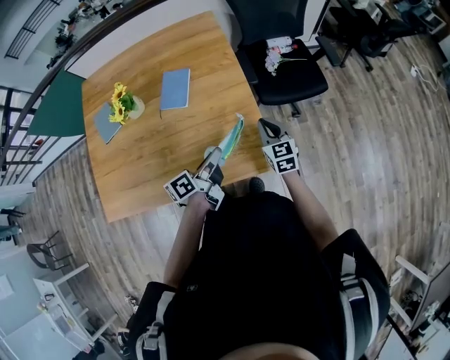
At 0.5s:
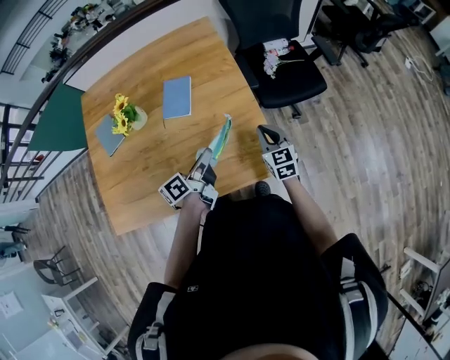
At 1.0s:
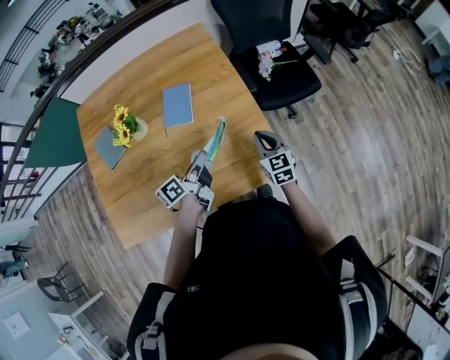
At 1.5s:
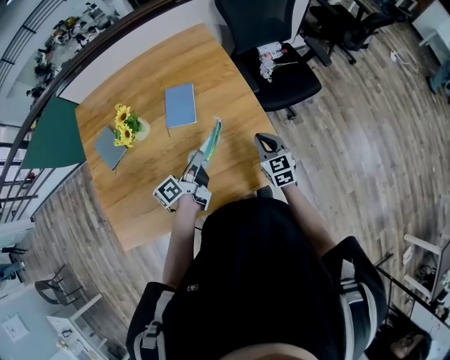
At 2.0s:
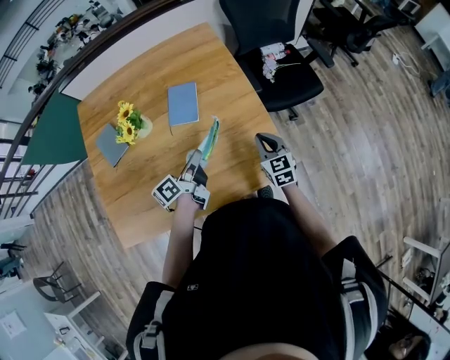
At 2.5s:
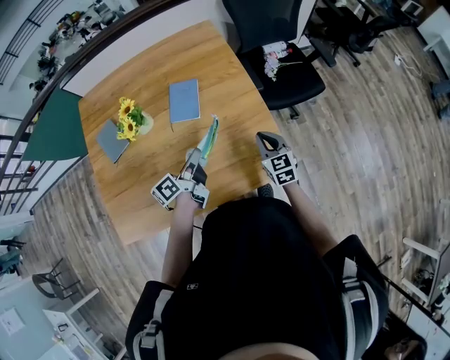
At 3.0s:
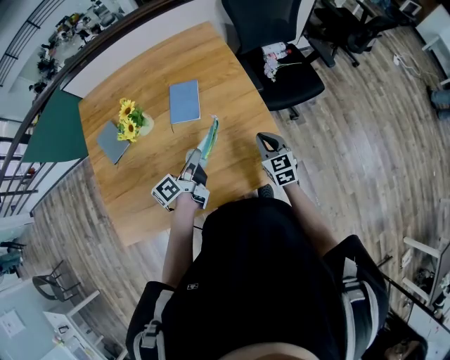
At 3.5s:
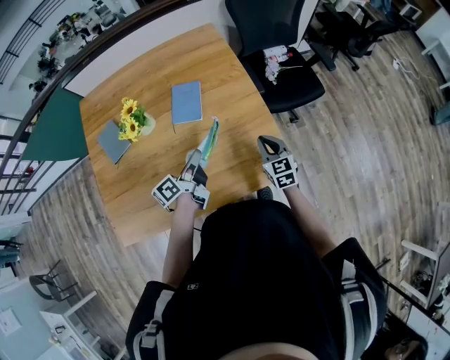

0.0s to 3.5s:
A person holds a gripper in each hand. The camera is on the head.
0.0s to 2.0s: The left gripper is displaced to the left by about 15 cm, while the right gripper heads to the left, covering approximately 10 cm.
2.0s to 3.5s: The grippers move only a little.

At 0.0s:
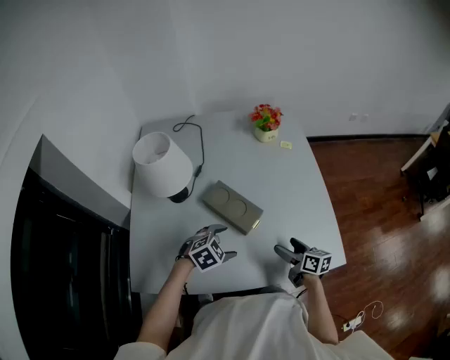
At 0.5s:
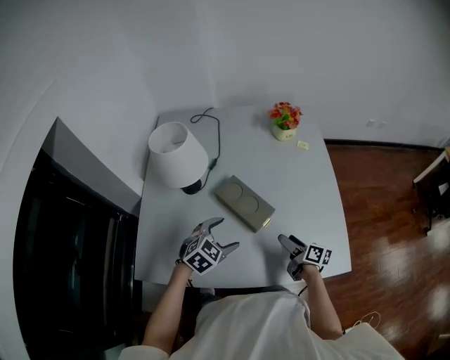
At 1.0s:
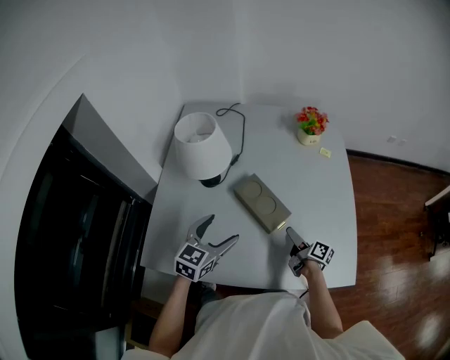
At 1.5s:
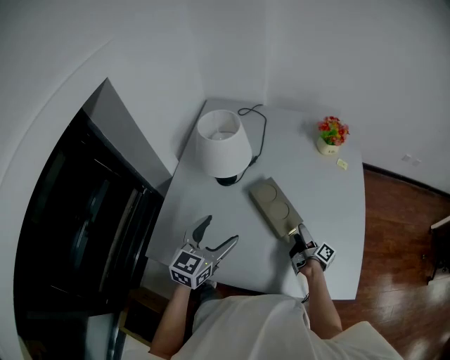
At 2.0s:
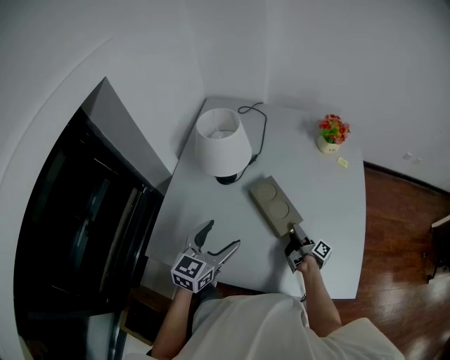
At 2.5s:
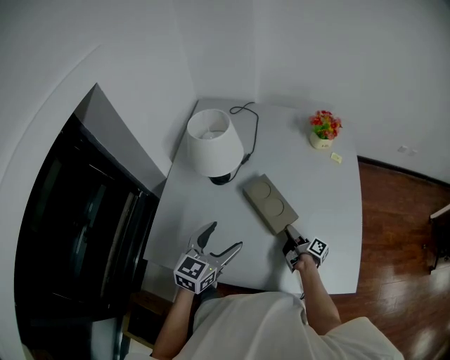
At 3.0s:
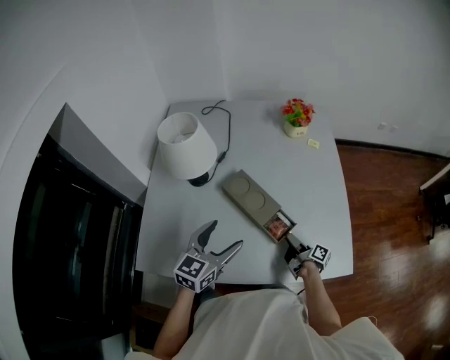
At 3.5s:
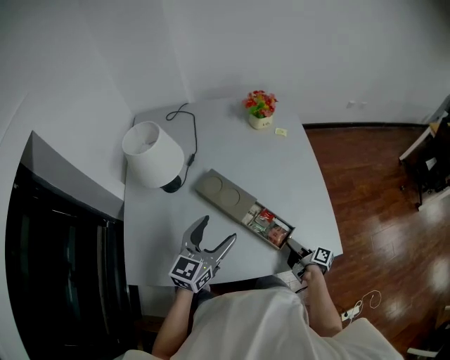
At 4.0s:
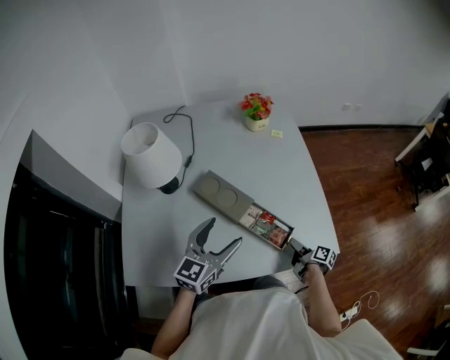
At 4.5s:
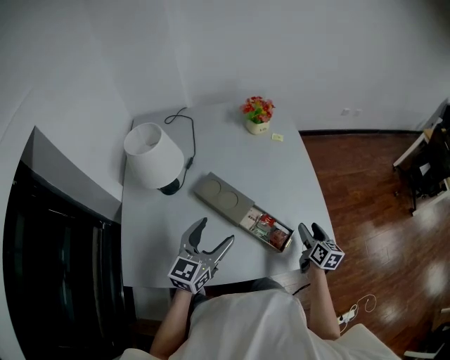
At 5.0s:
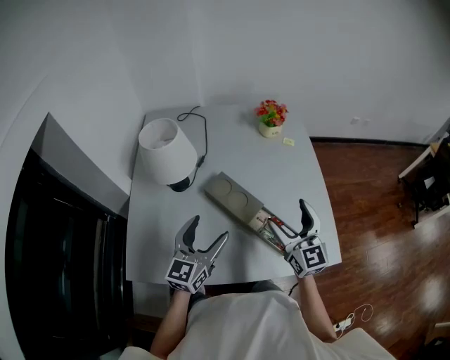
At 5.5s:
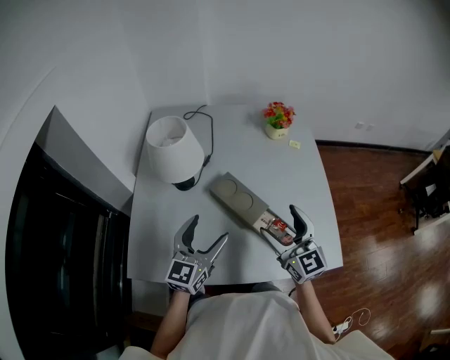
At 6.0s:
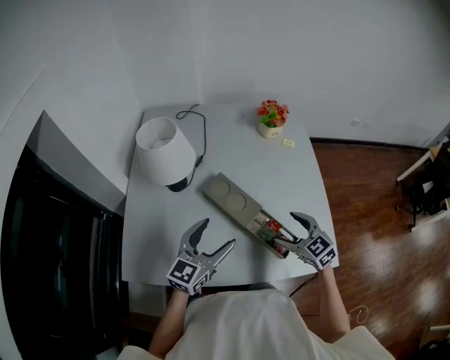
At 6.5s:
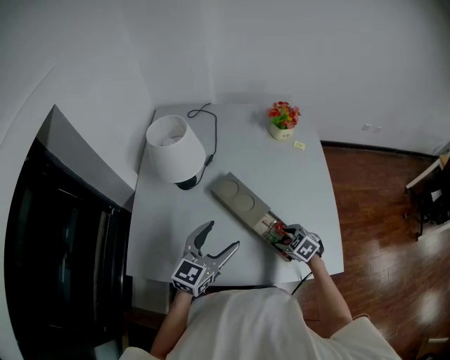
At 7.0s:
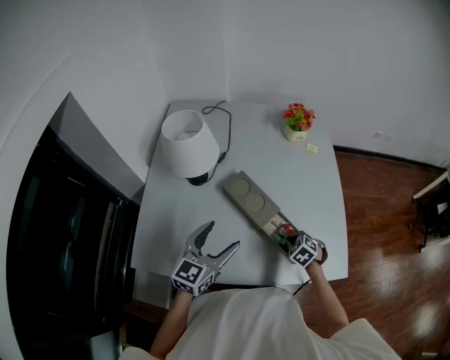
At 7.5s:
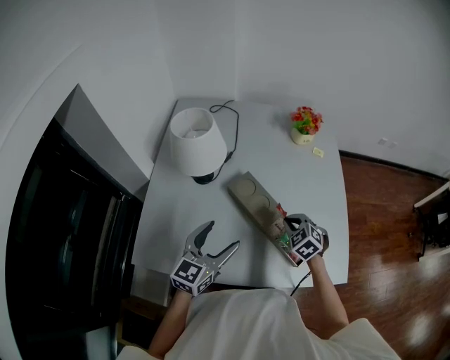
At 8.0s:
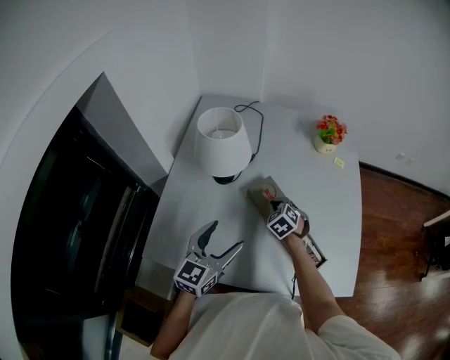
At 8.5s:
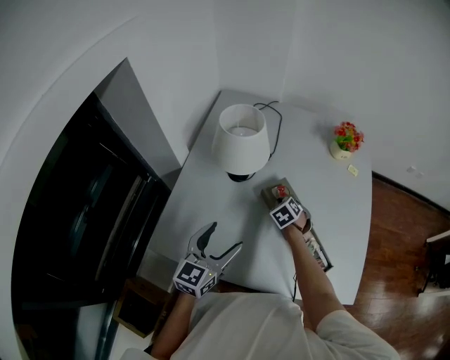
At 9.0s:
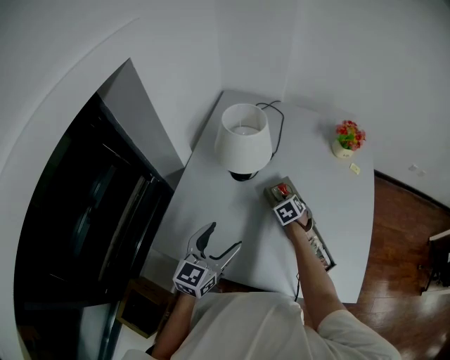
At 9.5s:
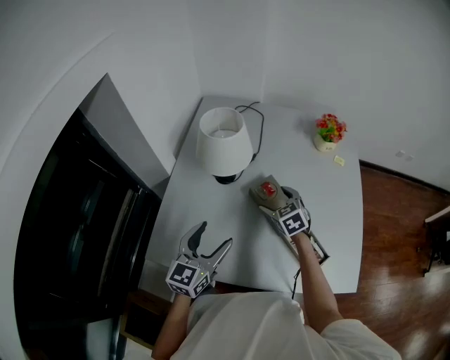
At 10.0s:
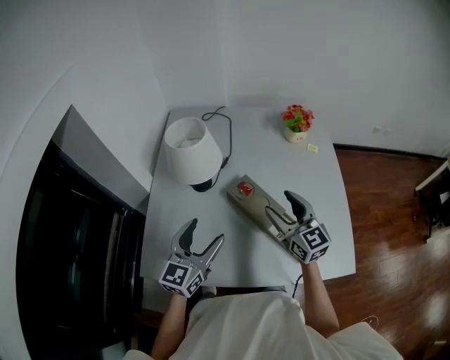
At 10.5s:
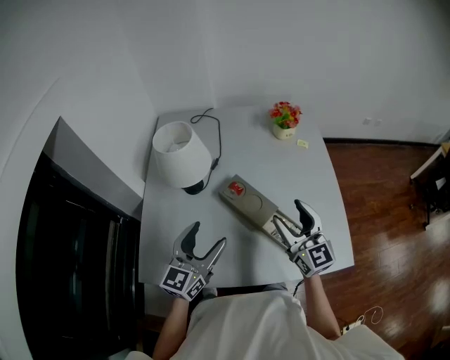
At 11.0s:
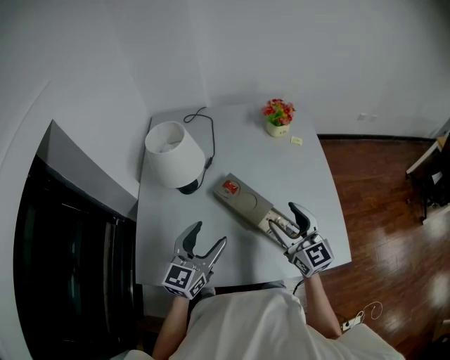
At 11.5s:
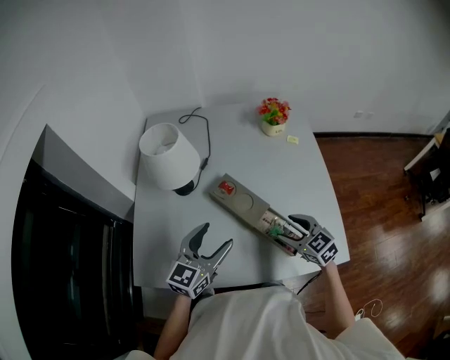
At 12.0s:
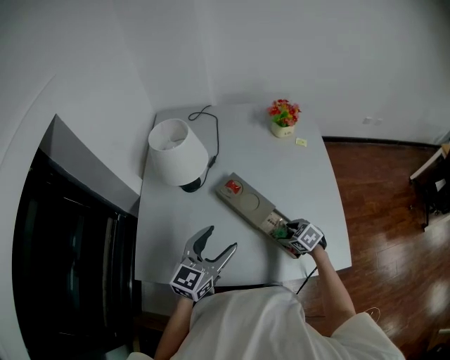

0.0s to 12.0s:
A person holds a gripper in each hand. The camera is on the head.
0.0s to 2.0s: The left gripper moves upward and to the left, some 15 cm, and points its fingers roughly 40 degrees further upward. The right gripper heads forward, to the left and downward, covering about 15 cm, twists approximately 50 degrees clockwise, seen from behind, and closes up.
2.0s to 4.0s: The left gripper is displaced to the right by approximately 15 cm, and rotates about 20 degrees; the right gripper heads to the right and backward, covering roughly 25 cm, and swivels approximately 20 degrees.
4.0s to 6.0s: The left gripper travels to the left by about 5 cm. Meanwhile the right gripper moves upward and to the left, roughly 25 cm, twists approximately 90 degrees counterclockwise, seen from behind, and opens up.
6.0s to 8.0s: The left gripper travels to the left by roughly 10 cm. The right gripper goes roughly 25 cm to the left, forward and downward, changes its angle by approximately 30 degrees, and closes up.
8.0s to 10.0s: The right gripper goes roughly 20 cm upward and backward, tilts its fingers approximately 50 degrees upward, and opens up.
10.0s to 12.0s: The right gripper moves downward, some 25 cm, and tilts its fingers some 60 degrees downward. Meanwhile the left gripper is displaced to the right by about 10 cm.

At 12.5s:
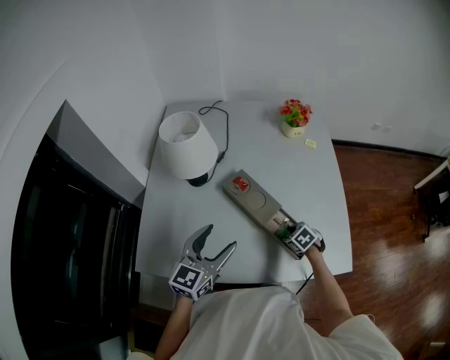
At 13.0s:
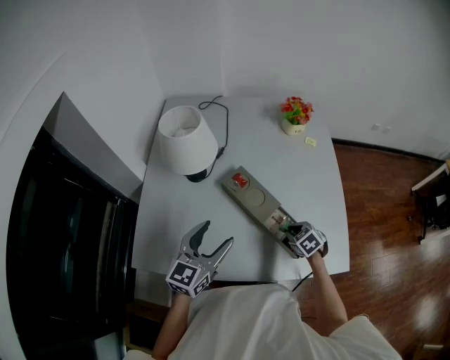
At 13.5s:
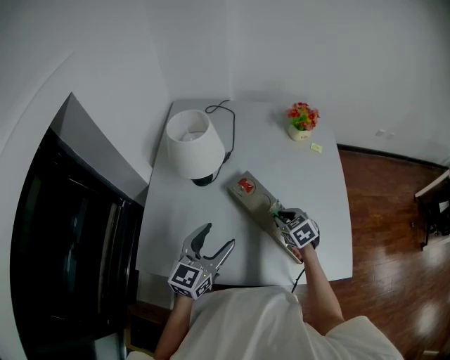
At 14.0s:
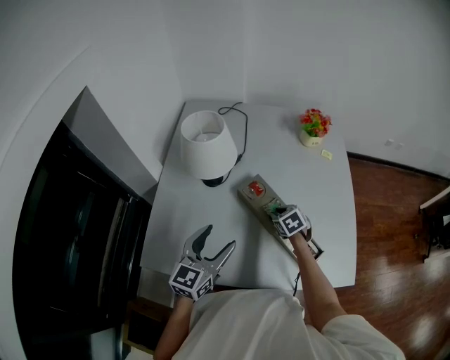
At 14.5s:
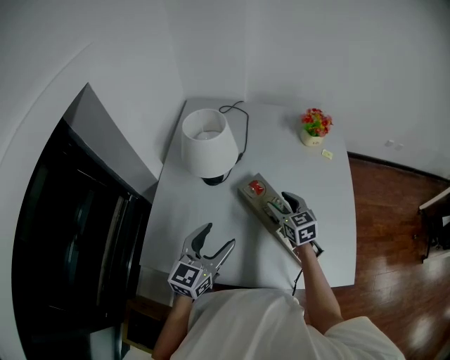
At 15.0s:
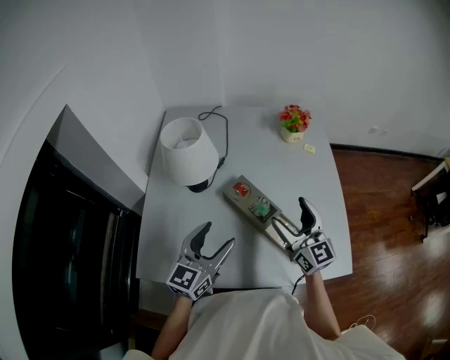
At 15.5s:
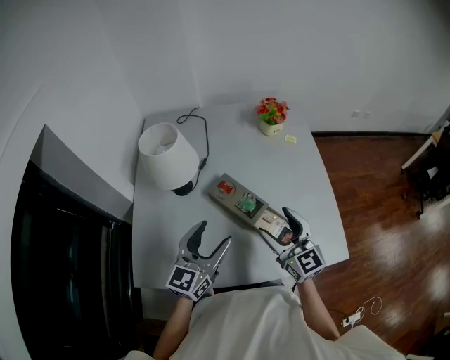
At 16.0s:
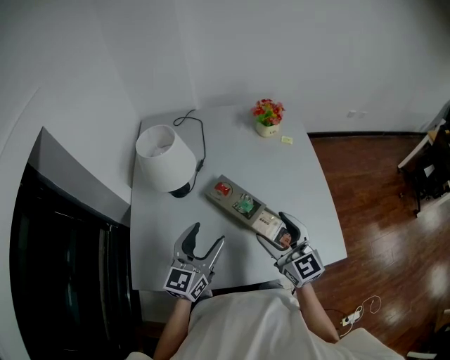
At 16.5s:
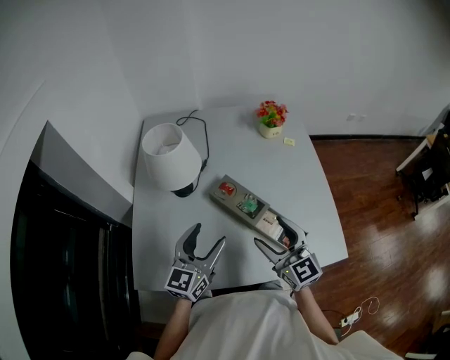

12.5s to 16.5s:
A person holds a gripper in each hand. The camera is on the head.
12.5s to 14.5s: The left gripper changes place by about 5 cm. Meanwhile the right gripper swings up and down, about 20 cm each way, with 2 reversals, and points its fingers some 40 degrees further upward.
14.5s to 16.5s: The right gripper moves backward and upward, approximately 20 cm, and changes its angle by some 20 degrees.

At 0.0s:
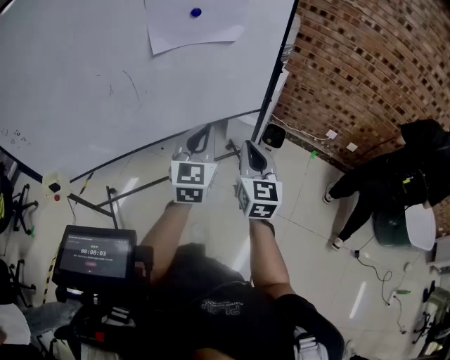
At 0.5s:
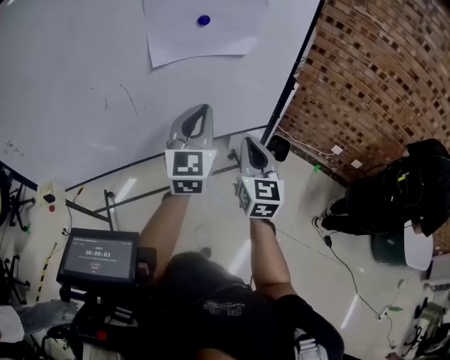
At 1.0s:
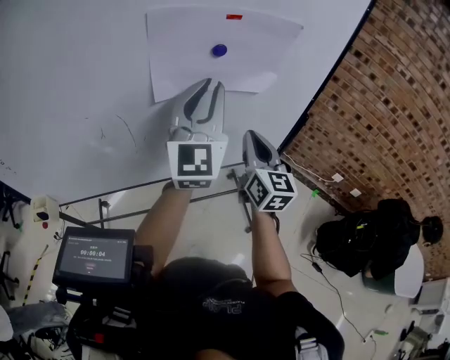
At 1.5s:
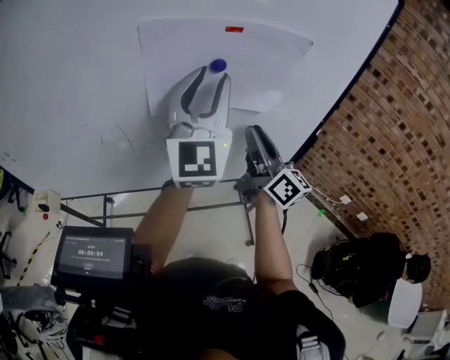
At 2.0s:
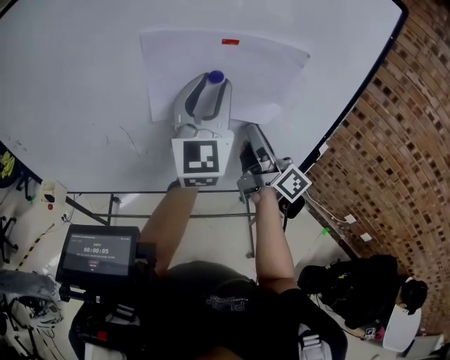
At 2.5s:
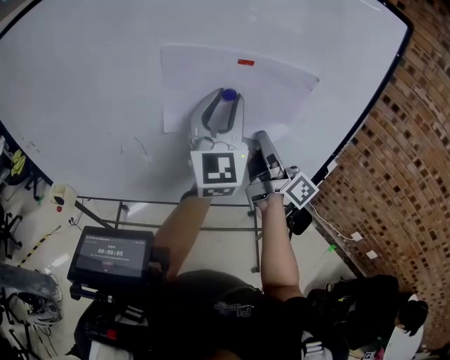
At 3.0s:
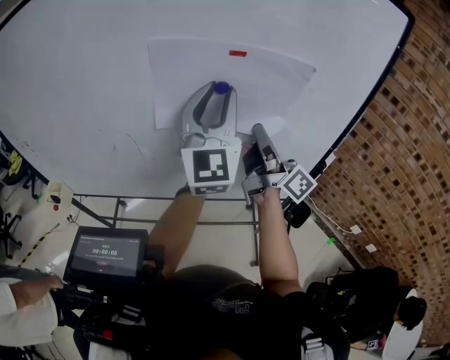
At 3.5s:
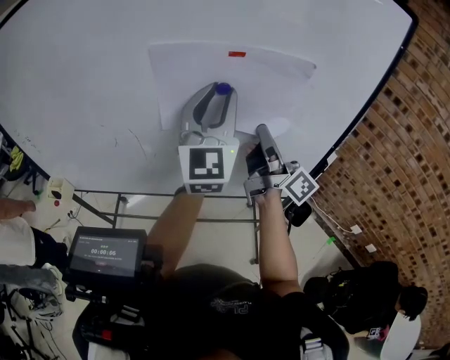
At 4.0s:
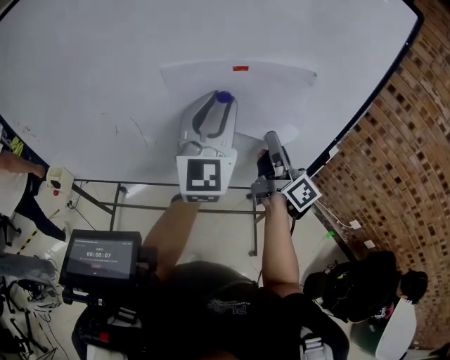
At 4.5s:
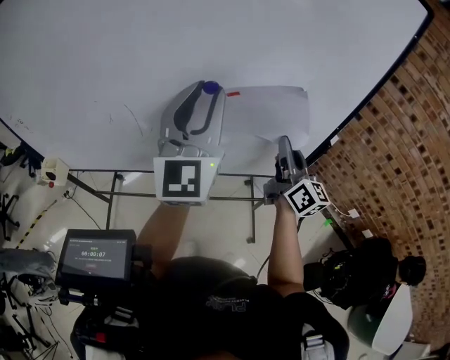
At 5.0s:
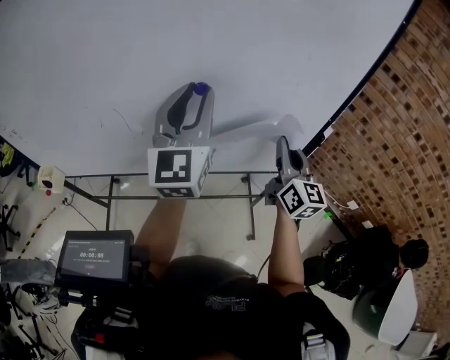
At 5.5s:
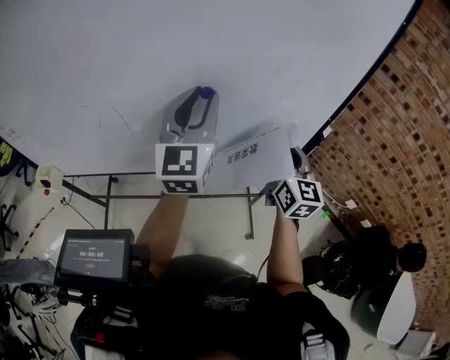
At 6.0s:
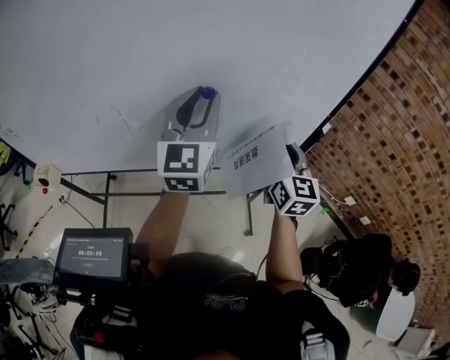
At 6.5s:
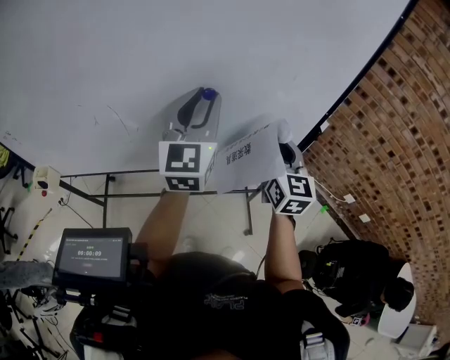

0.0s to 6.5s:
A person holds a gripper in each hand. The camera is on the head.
0.0s to 2.0s: The right gripper ends up some 35 cm from where it was, tilts its fingers about 30 degrees upward, and opens up; the left gripper moves approximately 35 cm, turns by some 40 degrees, and opens up.
2.0s to 4.5s: The right gripper goes about 10 cm downward and to the right, rotates approximately 30 degrees, and closes up. The left gripper ends up some 5 cm from where it was.
4.5s to 6.5s: The right gripper rotates approximately 30 degrees. Meanwhile the left gripper is displaced downward by some 5 cm.
